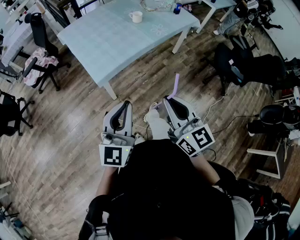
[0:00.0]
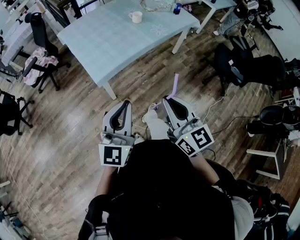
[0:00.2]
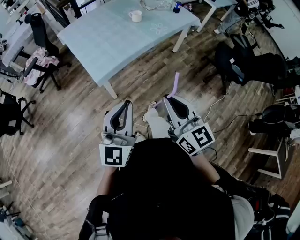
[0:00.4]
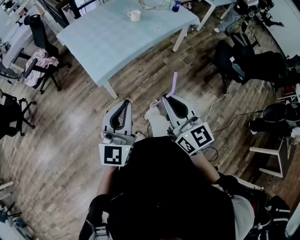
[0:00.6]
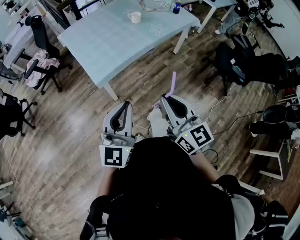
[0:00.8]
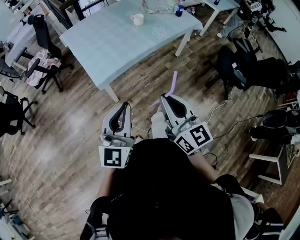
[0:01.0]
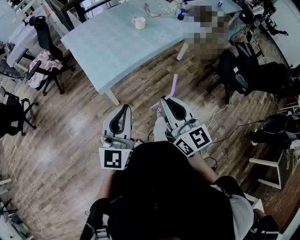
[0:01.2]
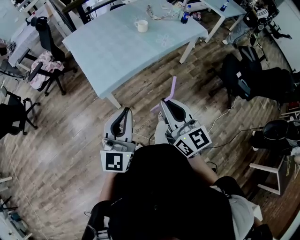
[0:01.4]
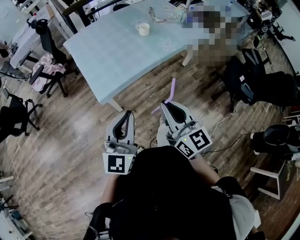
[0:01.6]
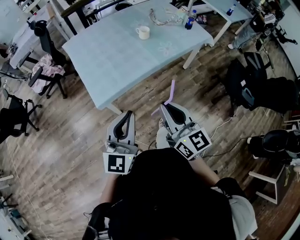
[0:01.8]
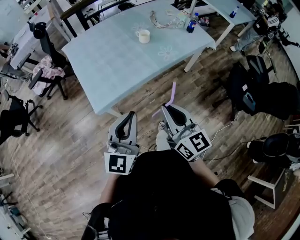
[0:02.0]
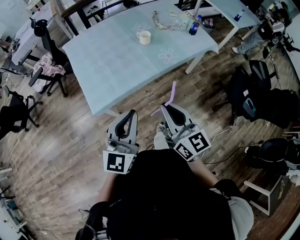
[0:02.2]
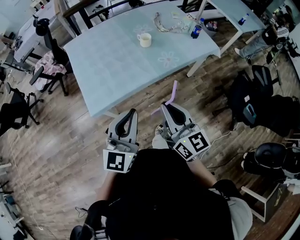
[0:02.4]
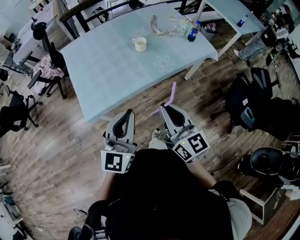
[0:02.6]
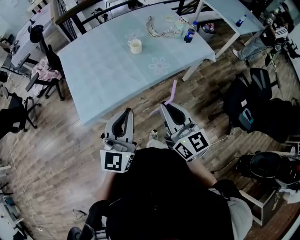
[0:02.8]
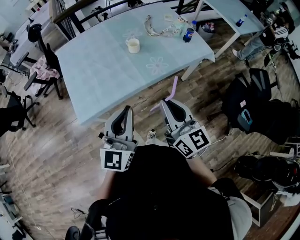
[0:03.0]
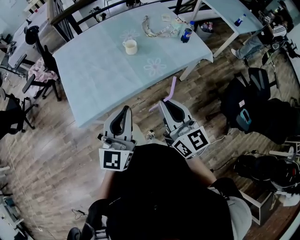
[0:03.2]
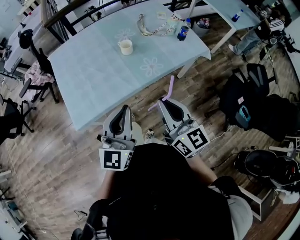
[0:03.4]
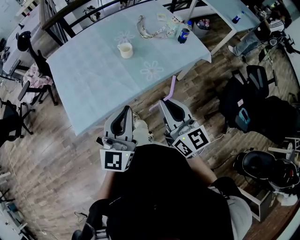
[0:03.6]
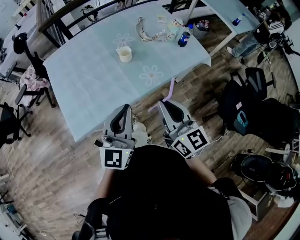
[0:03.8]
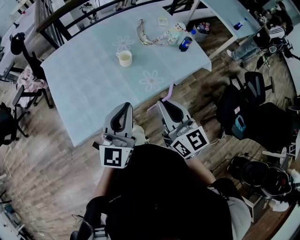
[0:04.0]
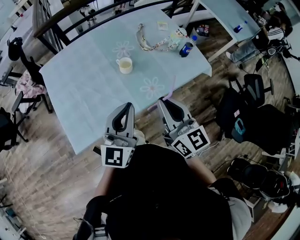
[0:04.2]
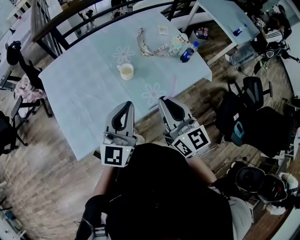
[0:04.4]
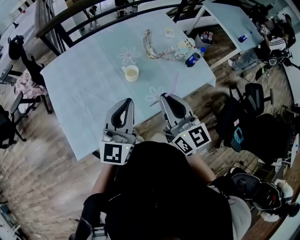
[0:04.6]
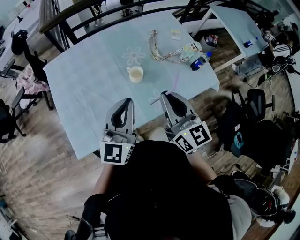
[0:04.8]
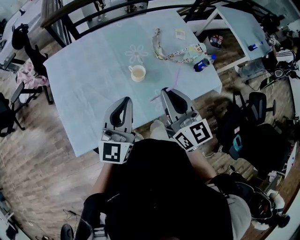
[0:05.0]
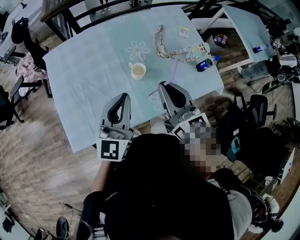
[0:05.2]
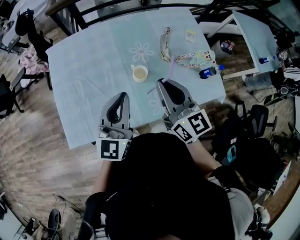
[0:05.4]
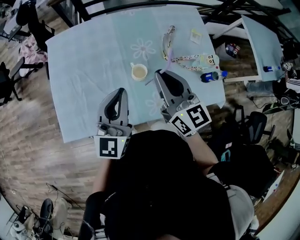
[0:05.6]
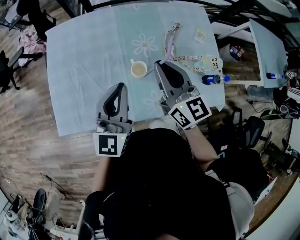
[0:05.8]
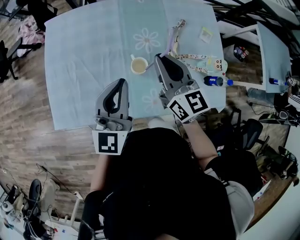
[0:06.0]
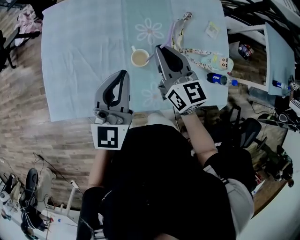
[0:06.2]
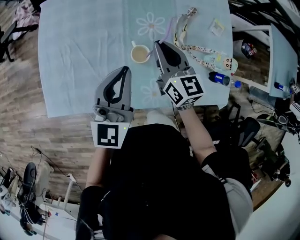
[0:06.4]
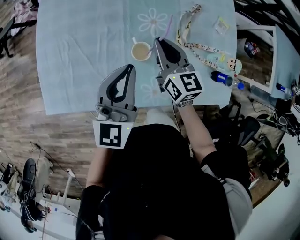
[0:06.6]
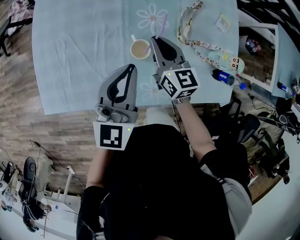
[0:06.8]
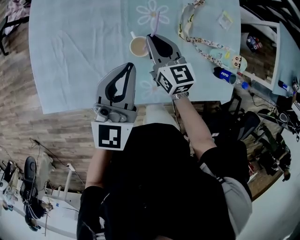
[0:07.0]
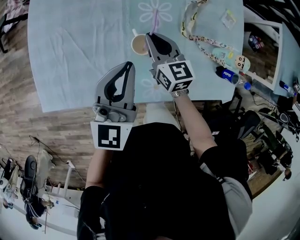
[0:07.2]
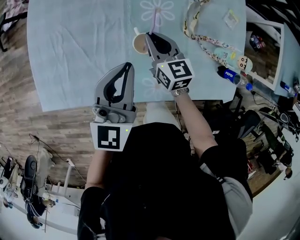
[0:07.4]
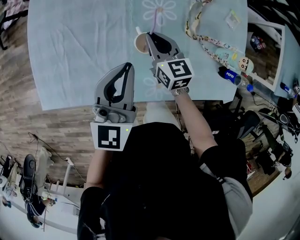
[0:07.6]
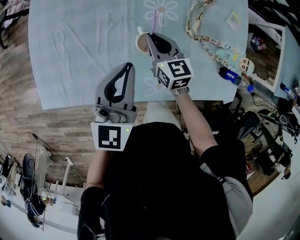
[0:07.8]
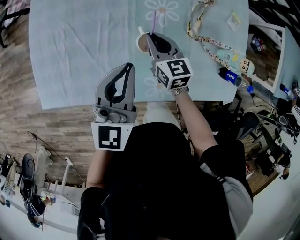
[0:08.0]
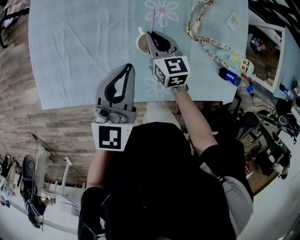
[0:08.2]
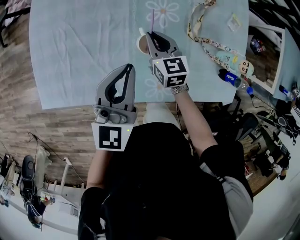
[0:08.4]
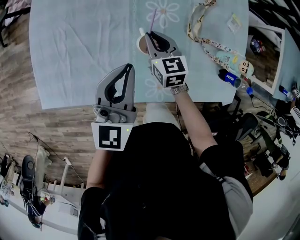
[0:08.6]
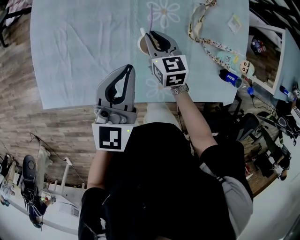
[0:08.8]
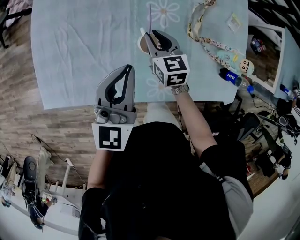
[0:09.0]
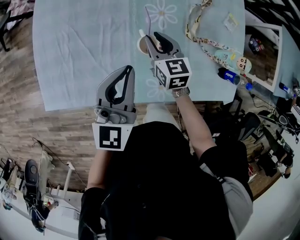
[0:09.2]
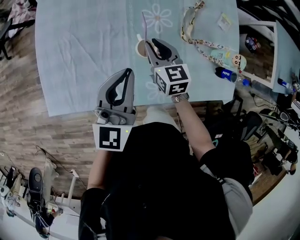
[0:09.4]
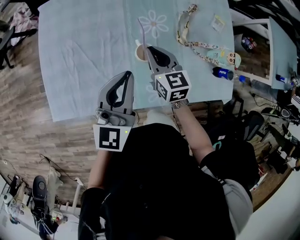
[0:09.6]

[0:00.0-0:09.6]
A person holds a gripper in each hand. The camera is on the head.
0:00.0 to 0:01.6: The grippers both shift forward by some 10 cm.
0:01.6 to 0:03.2: Both grippers travel together forward and to the right, approximately 25 cm.
0:03.2 to 0:04.8: The grippers both shift forward by approximately 25 cm.
0:04.8 to 0:06.4: The left gripper moves forward and downward, about 15 cm, and turns by some 30 degrees. The right gripper is displaced forward and downward by roughly 25 cm, and rotates roughly 20 degrees.
0:06.4 to 0:08.0: The left gripper is displaced downward by roughly 5 cm; the right gripper shifts about 15 cm downward.
0:08.0 to 0:09.6: The right gripper goes approximately 5 cm upward, and opens, then closes once more.

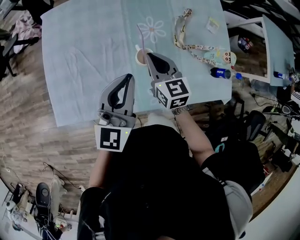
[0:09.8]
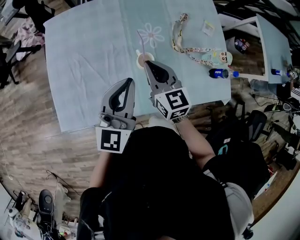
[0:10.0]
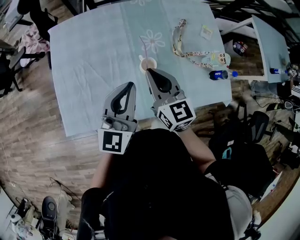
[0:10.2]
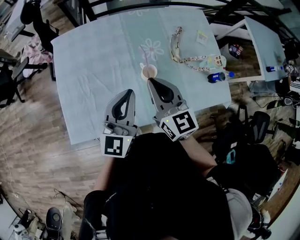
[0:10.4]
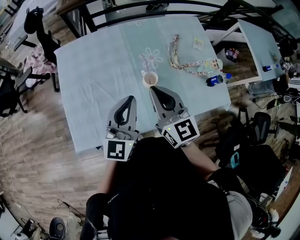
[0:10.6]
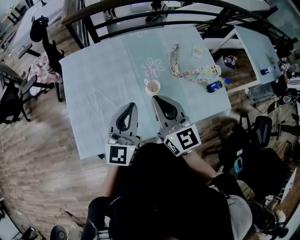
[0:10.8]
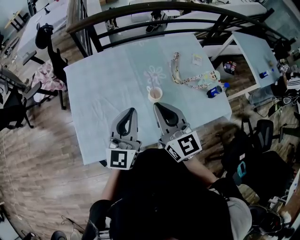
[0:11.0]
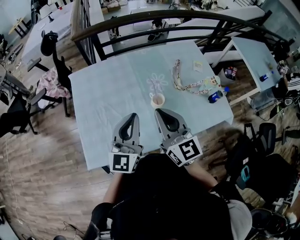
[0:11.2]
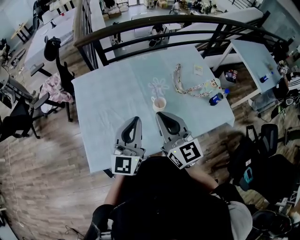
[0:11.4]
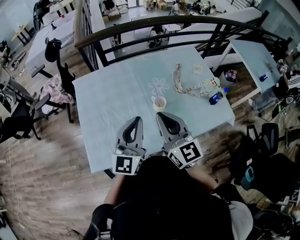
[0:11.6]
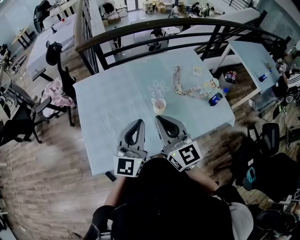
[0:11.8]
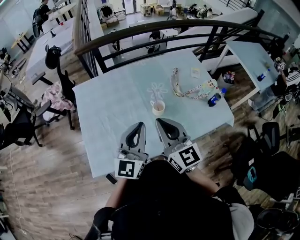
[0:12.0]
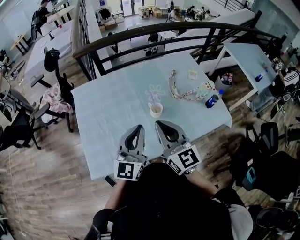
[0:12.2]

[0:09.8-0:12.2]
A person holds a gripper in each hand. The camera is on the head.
0:09.8 to 0:11.0: The left gripper goes about 10 cm to the left, upward and backward, while the right gripper travels upward and backward by approximately 20 cm, and rotates some 30 degrees.
0:11.0 to 0:12.2: The grippers make only small movements.

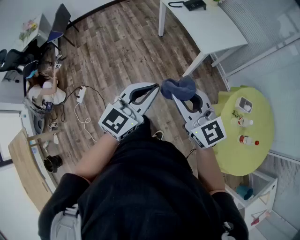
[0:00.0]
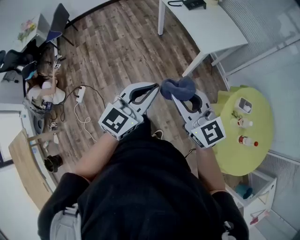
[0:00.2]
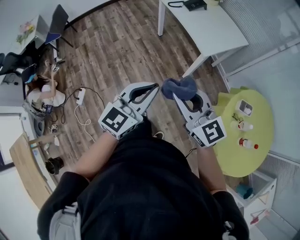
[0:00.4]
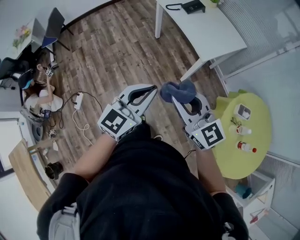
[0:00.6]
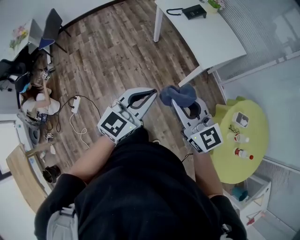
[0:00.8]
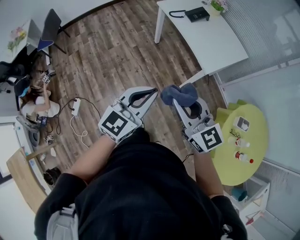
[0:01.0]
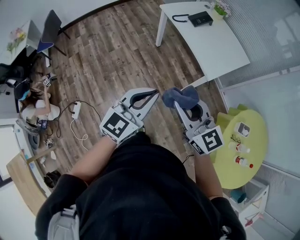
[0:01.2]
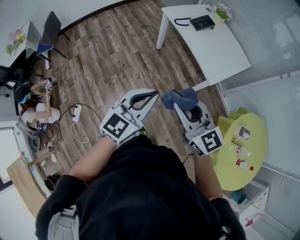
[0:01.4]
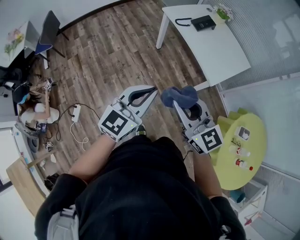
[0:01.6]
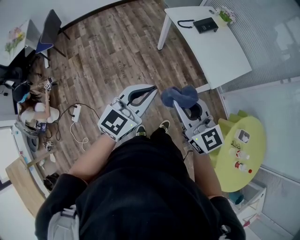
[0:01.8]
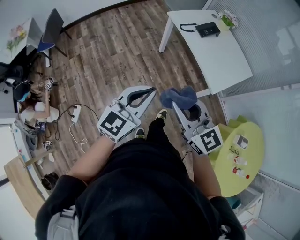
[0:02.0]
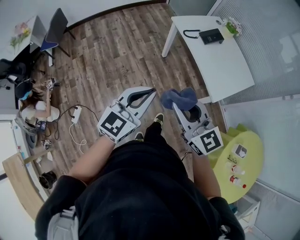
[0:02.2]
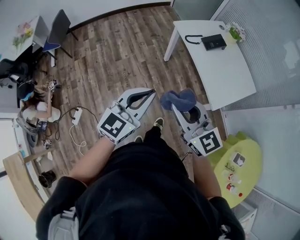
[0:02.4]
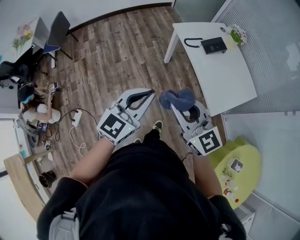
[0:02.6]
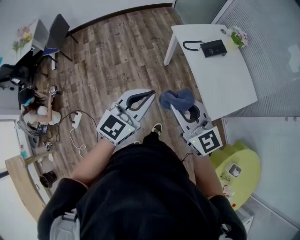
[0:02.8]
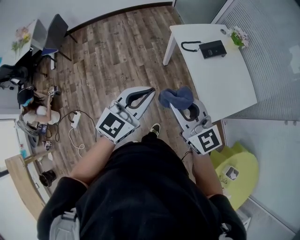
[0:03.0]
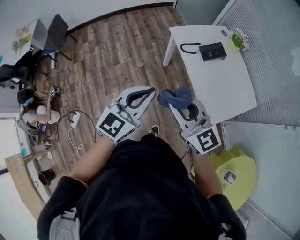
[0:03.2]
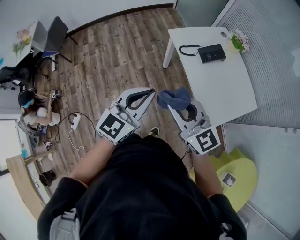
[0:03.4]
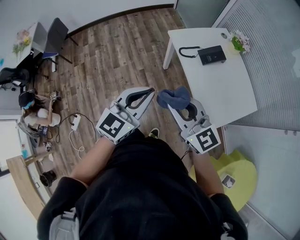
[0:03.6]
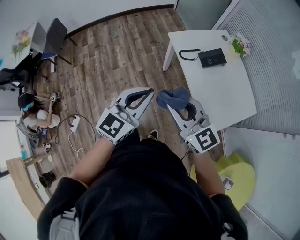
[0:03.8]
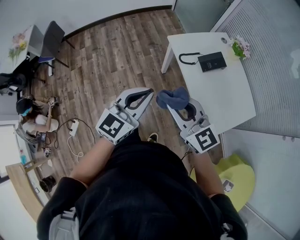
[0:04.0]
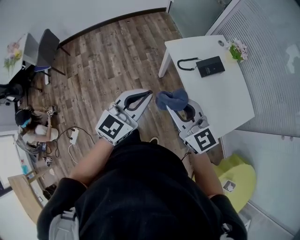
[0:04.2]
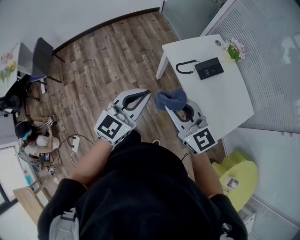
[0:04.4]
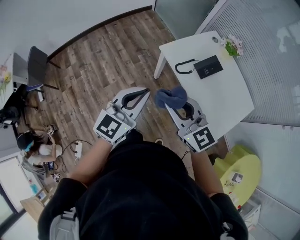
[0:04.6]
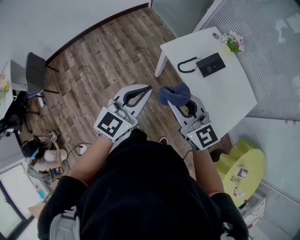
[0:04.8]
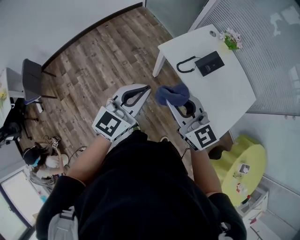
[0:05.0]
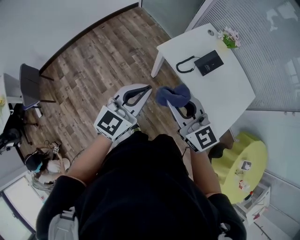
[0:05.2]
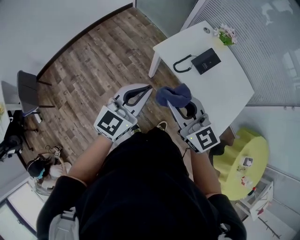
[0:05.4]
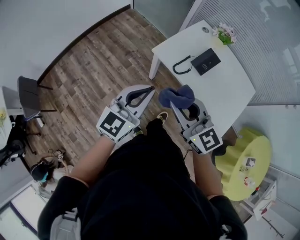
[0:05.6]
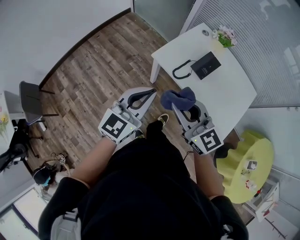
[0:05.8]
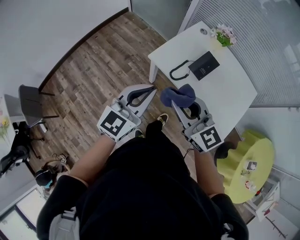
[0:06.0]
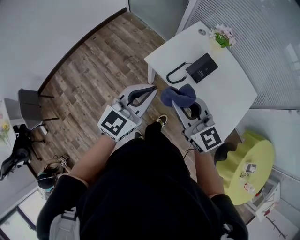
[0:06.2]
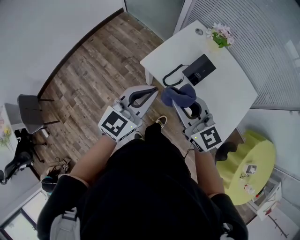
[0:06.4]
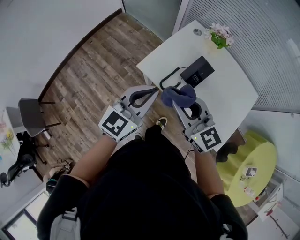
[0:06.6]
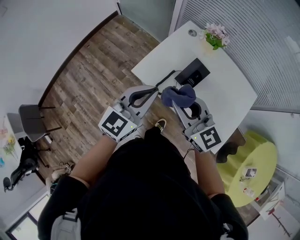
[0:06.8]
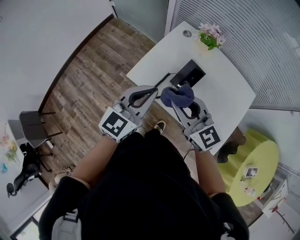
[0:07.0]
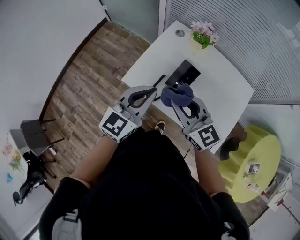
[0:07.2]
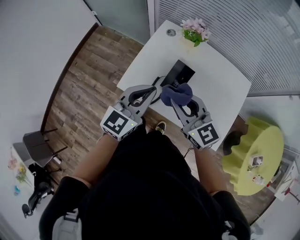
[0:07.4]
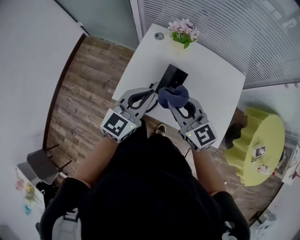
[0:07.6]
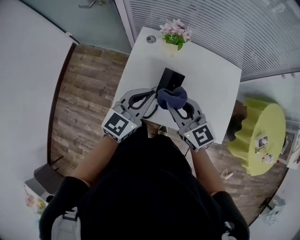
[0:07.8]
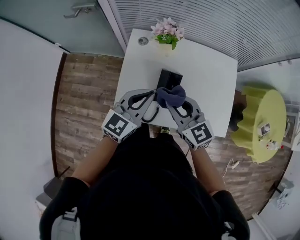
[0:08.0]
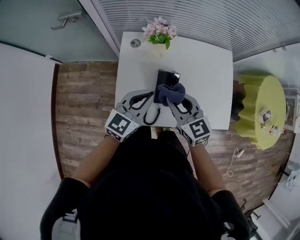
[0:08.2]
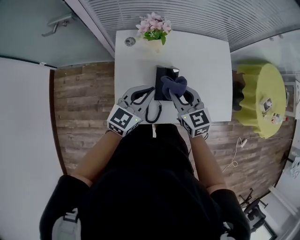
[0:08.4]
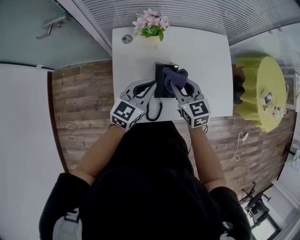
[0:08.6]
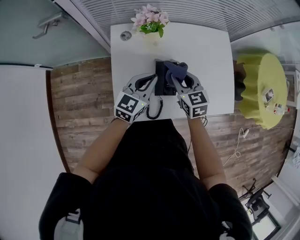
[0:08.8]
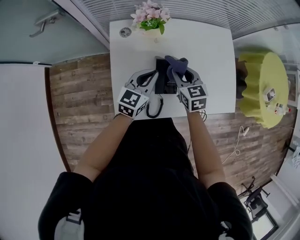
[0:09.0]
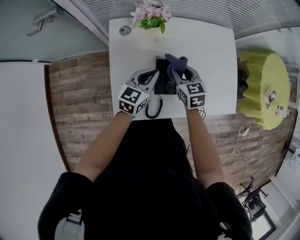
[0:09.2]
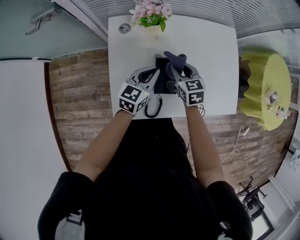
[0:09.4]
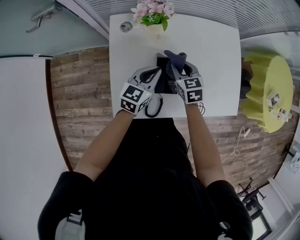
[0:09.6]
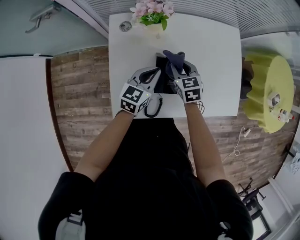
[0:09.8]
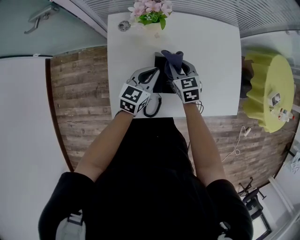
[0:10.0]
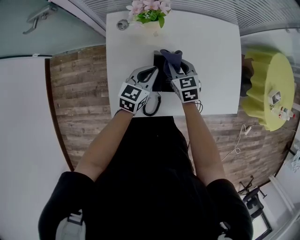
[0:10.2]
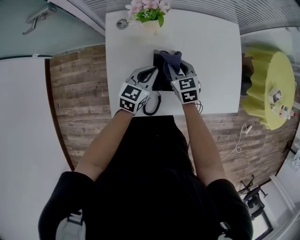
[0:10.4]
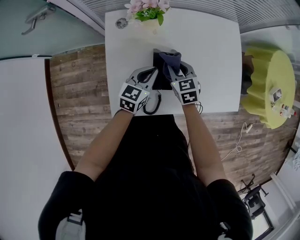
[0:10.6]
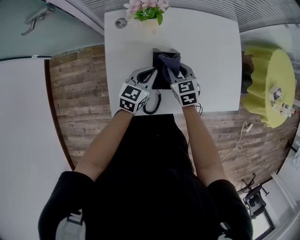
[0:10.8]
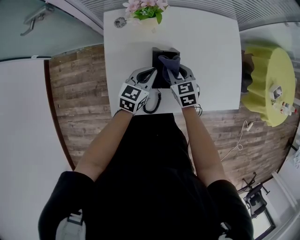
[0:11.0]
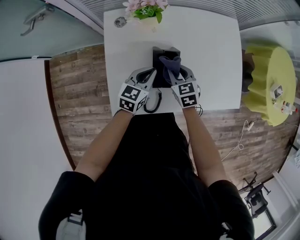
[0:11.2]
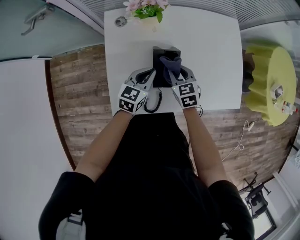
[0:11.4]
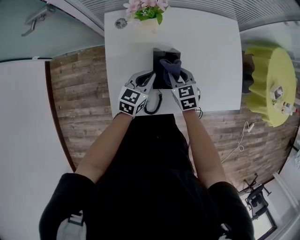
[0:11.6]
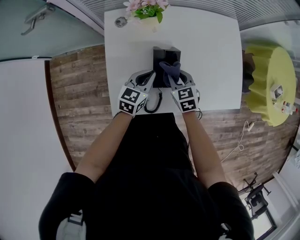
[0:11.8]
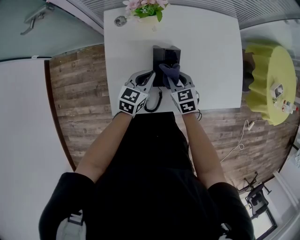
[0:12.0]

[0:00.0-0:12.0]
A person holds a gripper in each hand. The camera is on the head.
0:00.0 to 0:01.6: The two grippers go roughly 25 cm forward and to the left.
0:01.6 to 0:03.0: Both grippers travel together forward, about 20 cm.
0:03.0 to 0:04.4: The grippers both shift forward by about 20 cm.
0:04.4 to 0:06.0: The two grippers go some 15 cm forward. The right gripper rotates about 20 degrees.
0:06.0 to 0:07.6: Both grippers travel together forward and to the right, approximately 30 cm. The right gripper changes its angle by approximately 20 degrees. The left gripper changes its angle by some 20 degrees.
0:07.6 to 0:09.0: Both grippers move downward, approximately 15 cm. The right gripper swivels some 50 degrees, while the left gripper swivels roughly 20 degrees.
0:09.0 to 0:10.4: The grippers both shift downward by about 5 cm.
0:10.4 to 0:12.0: The right gripper heads backward, covering about 10 cm.
